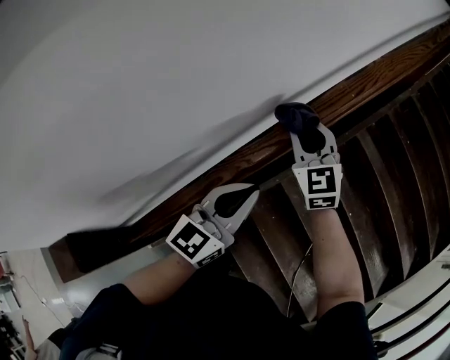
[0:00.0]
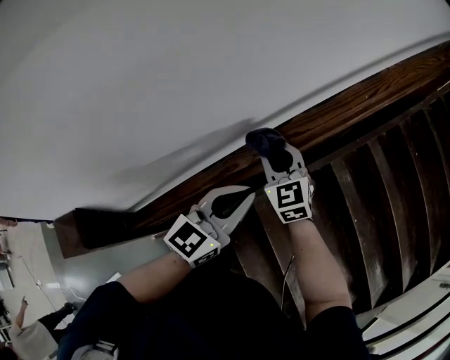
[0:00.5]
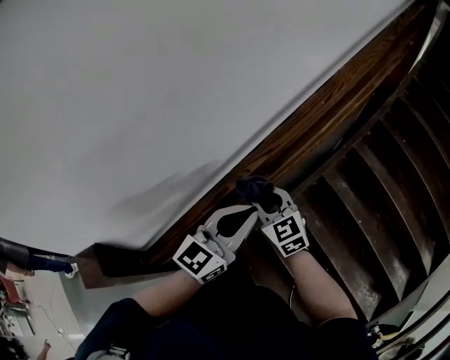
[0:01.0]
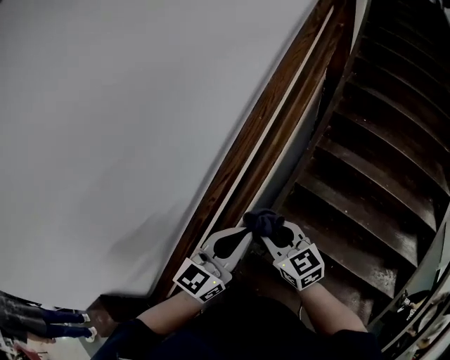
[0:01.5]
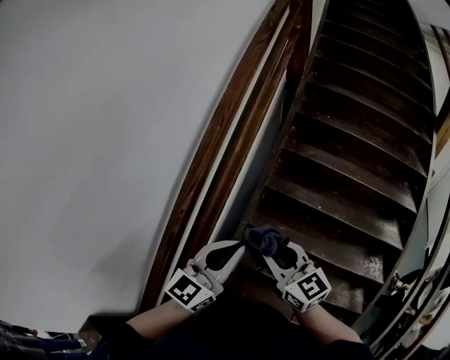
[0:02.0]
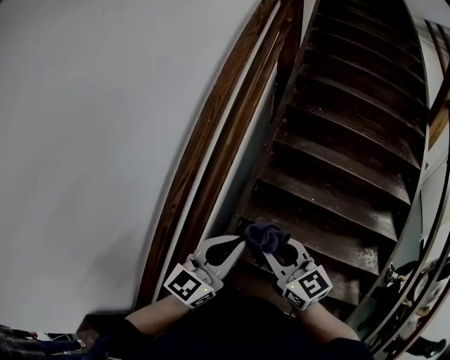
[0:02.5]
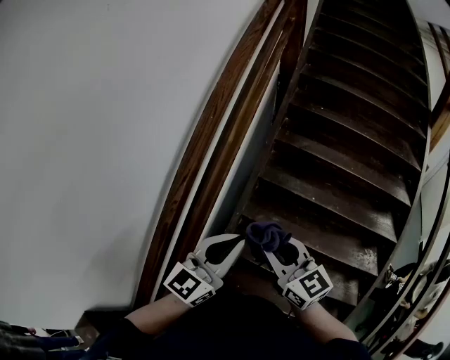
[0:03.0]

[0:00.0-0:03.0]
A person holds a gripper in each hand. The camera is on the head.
0:00.0 to 0:01.5: The left gripper heads backward, to the right and upward, covering approximately 15 cm; the right gripper travels backward by approximately 25 cm, and changes its angle by some 30 degrees.
0:01.5 to 0:03.0: The right gripper goes approximately 15 cm to the right and backward; the left gripper is displaced to the right by approximately 10 cm.

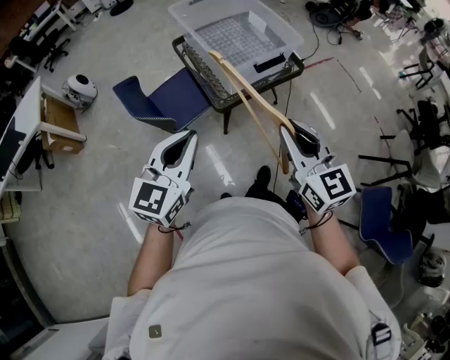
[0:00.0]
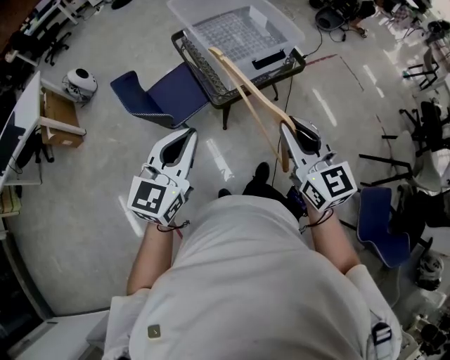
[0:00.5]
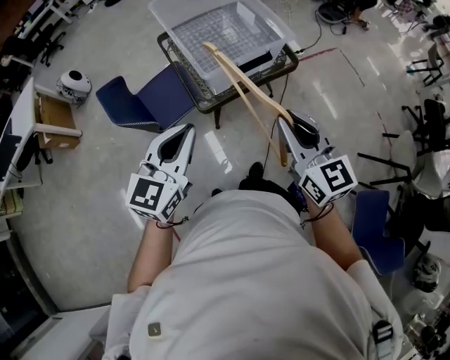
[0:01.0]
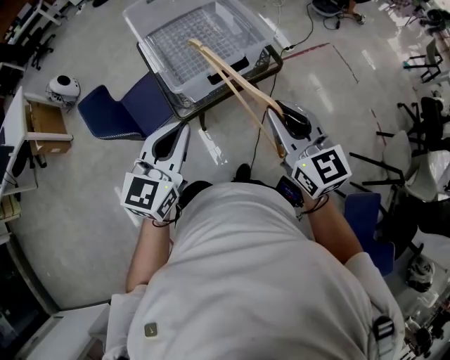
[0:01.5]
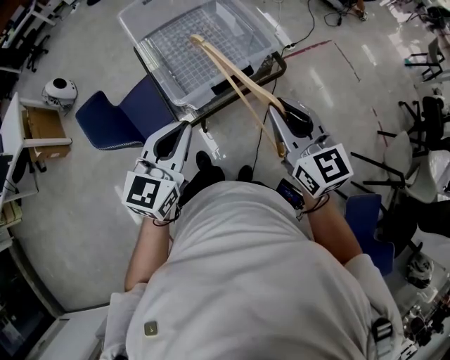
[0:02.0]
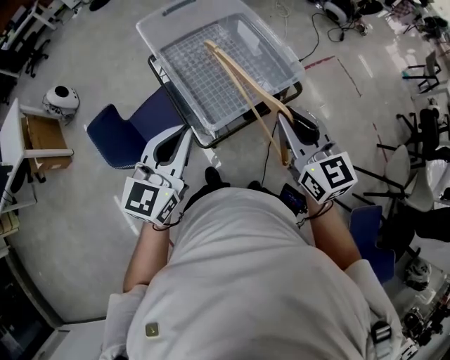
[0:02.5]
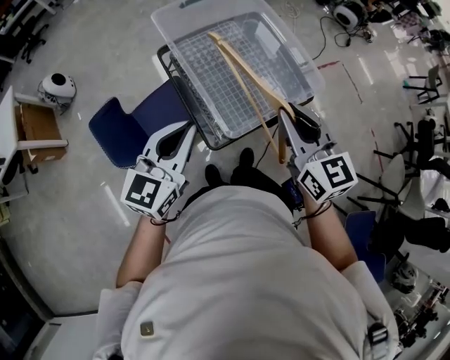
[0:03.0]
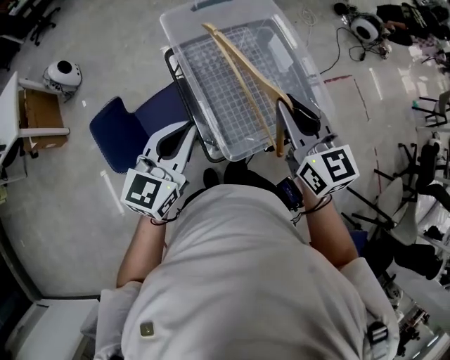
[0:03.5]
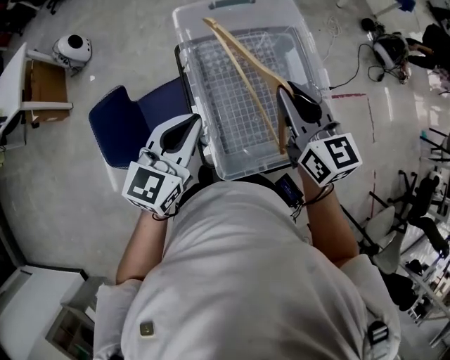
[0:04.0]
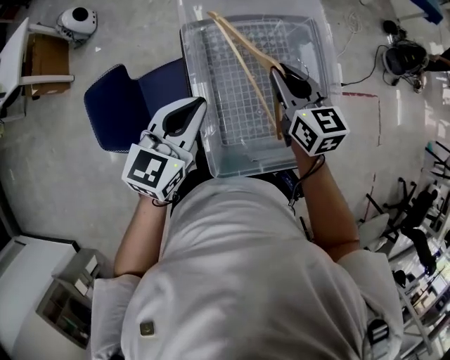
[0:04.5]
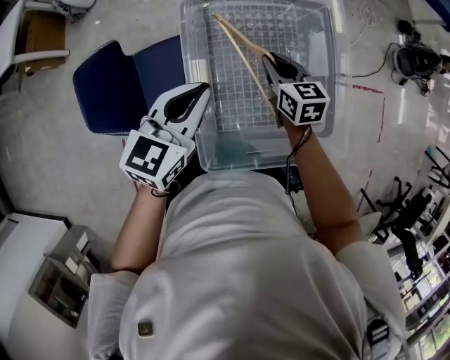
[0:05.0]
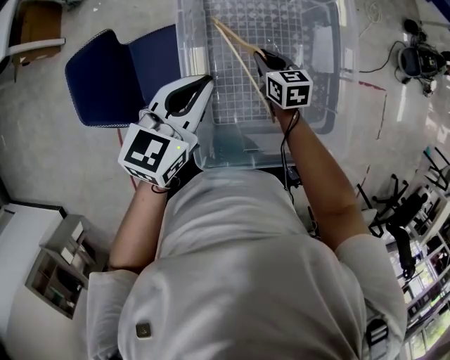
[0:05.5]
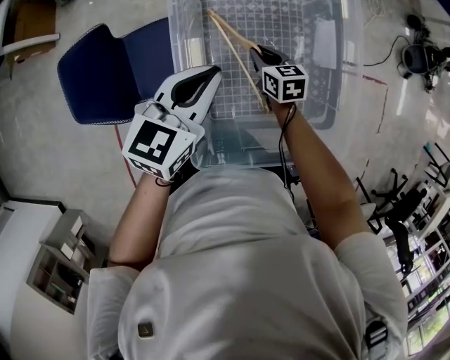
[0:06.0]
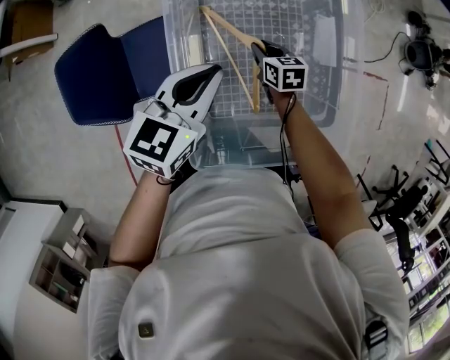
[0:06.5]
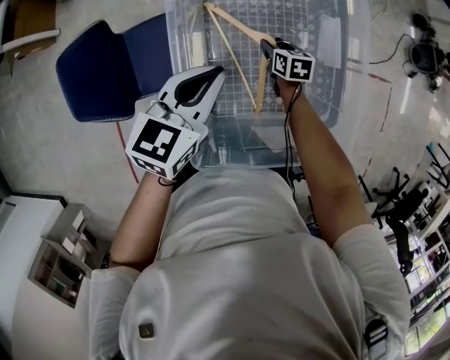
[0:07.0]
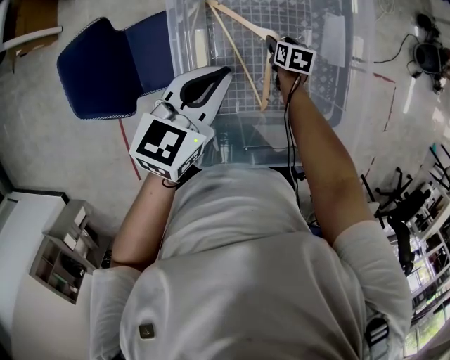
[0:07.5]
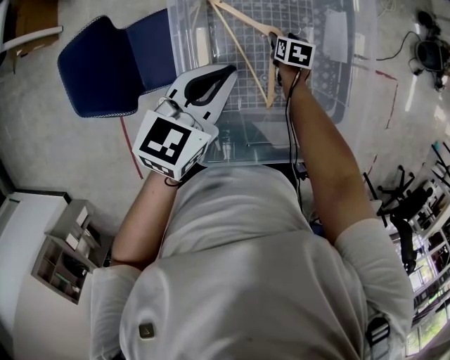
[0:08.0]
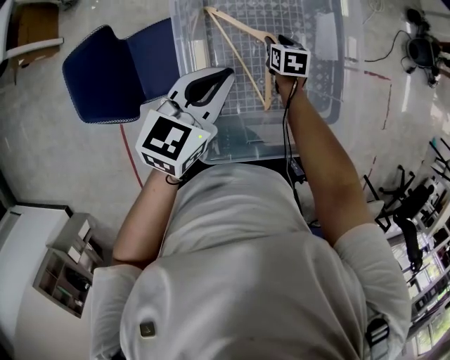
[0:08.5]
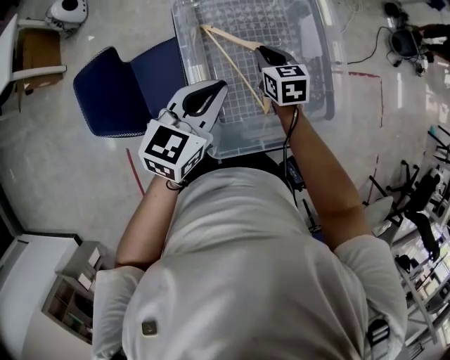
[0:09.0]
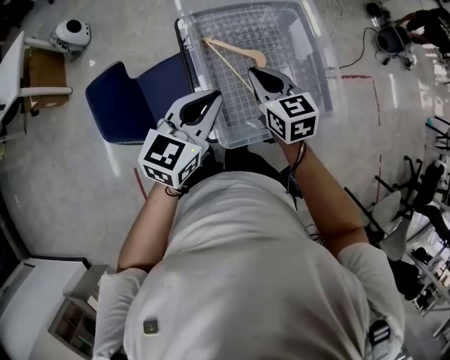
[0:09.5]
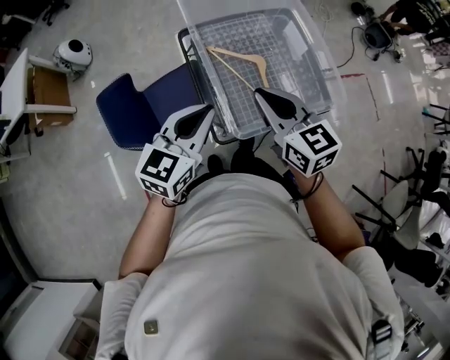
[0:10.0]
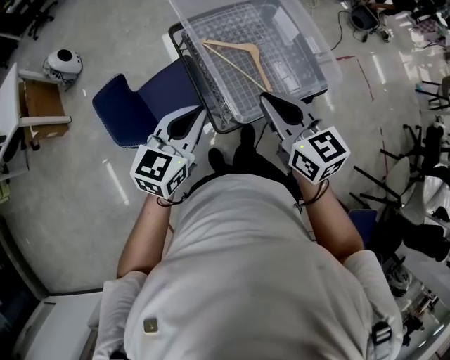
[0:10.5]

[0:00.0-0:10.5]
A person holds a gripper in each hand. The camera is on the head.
0:00.0 to 0:02.0: Both grippers move forward and to the right, roughly 30 cm.
0:02.0 to 0:04.0: The grippers both shift forward and to the left by some 35 cm.
0:04.0 to 0:06.5: The right gripper goes about 40 cm downward, and points its fingers approximately 30 degrees further downward. The left gripper shifts some 20 cm downward, forward and to the right.
0:06.5 to 0:08.5: The right gripper opens, then closes once more.
0:08.5 to 0:10.5: The left gripper shifts roughly 25 cm backward, to the left and upward. Meanwhile the right gripper heads upward and backward, covering roughly 50 cm, angles its fingers upward, by some 40 degrees, and closes its fingers.

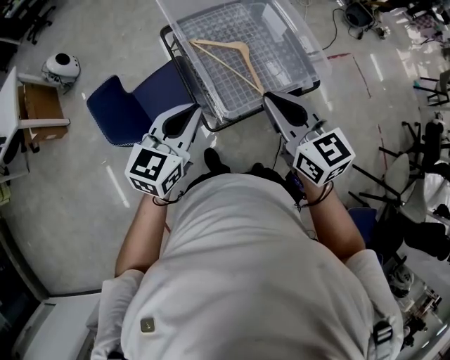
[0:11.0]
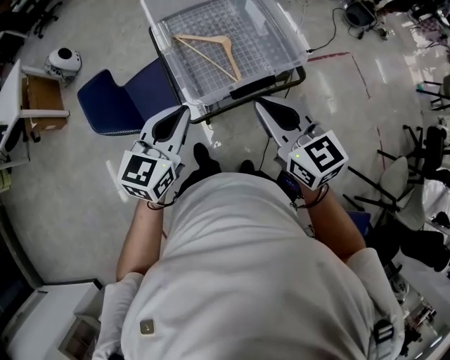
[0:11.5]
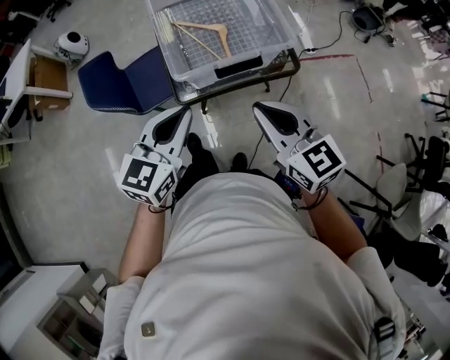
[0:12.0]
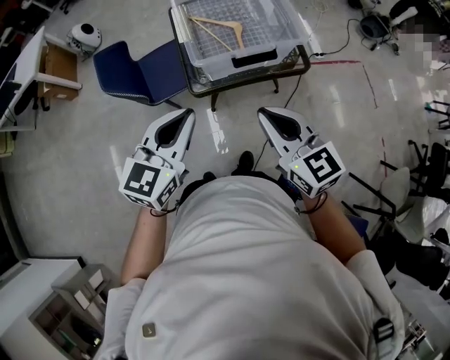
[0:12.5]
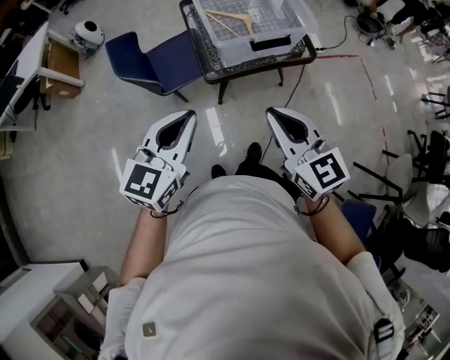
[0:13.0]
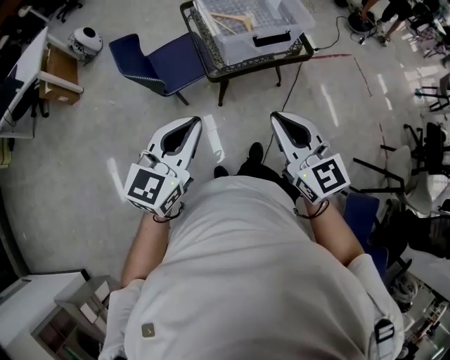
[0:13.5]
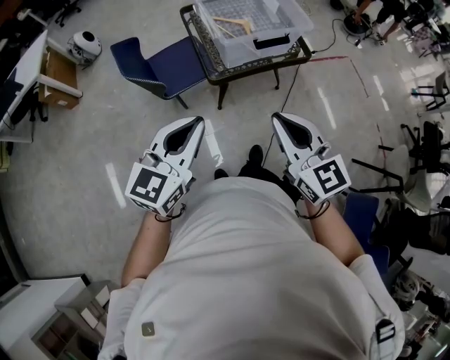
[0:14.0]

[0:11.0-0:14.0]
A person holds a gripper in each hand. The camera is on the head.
0:11.0 to 0:12.5: The two grippers go roughly 25 cm backward and to the right.
0:12.5 to 0:14.0: The two grippers go some 20 cm backward and to the left.

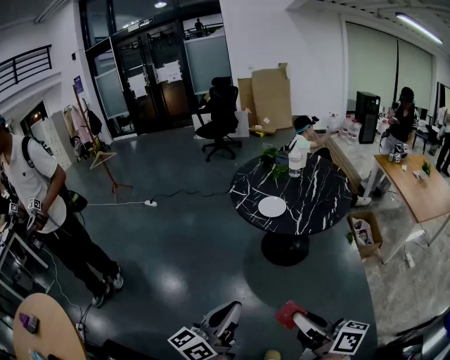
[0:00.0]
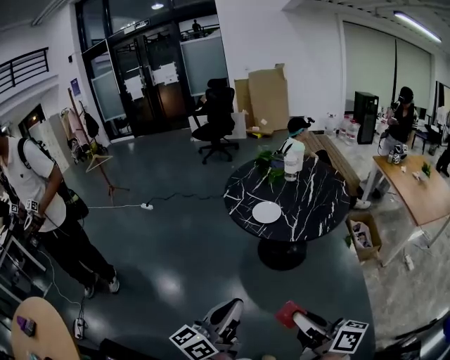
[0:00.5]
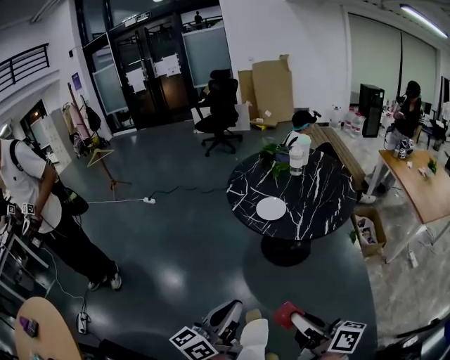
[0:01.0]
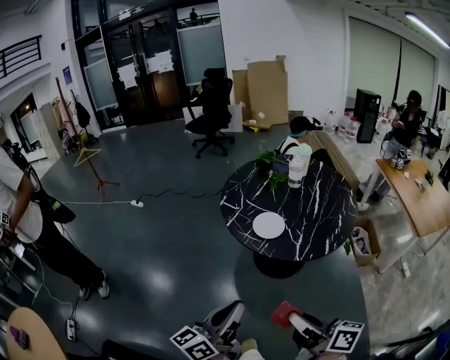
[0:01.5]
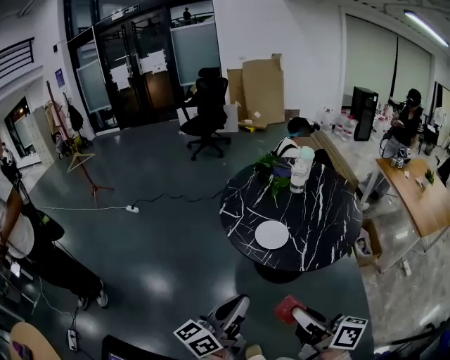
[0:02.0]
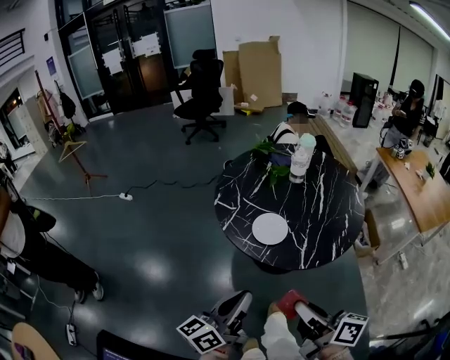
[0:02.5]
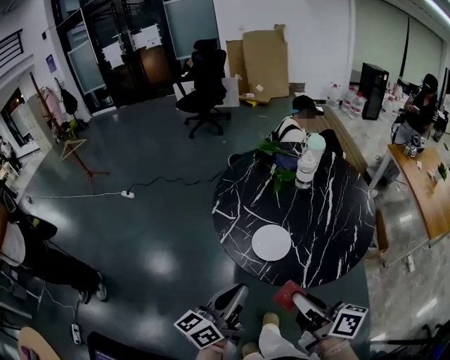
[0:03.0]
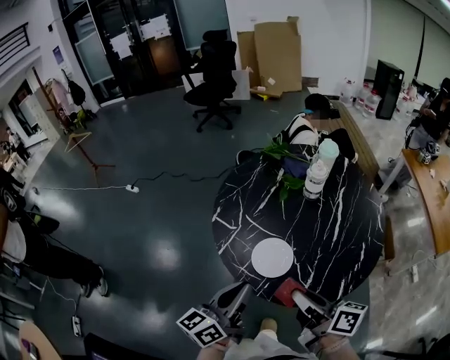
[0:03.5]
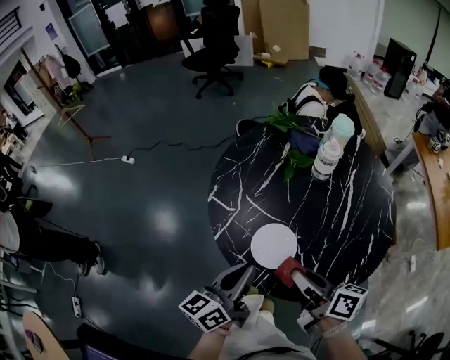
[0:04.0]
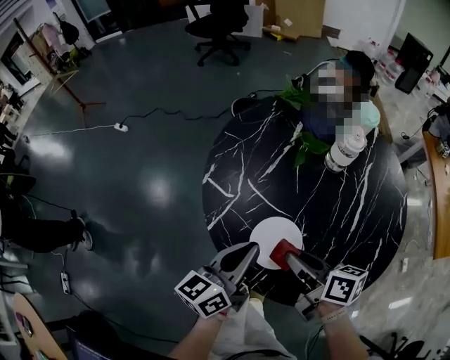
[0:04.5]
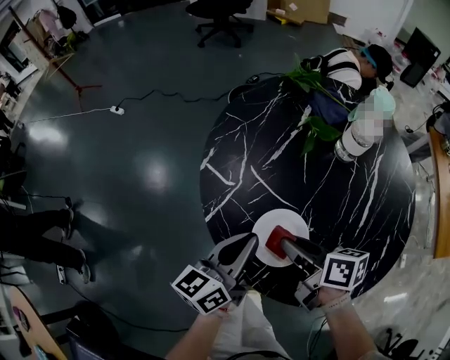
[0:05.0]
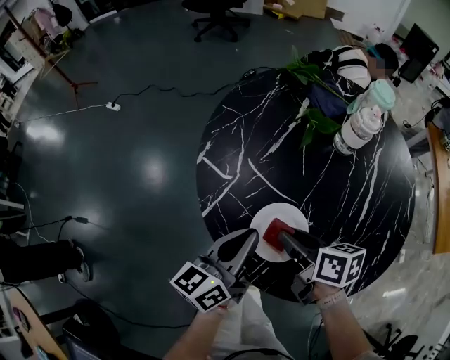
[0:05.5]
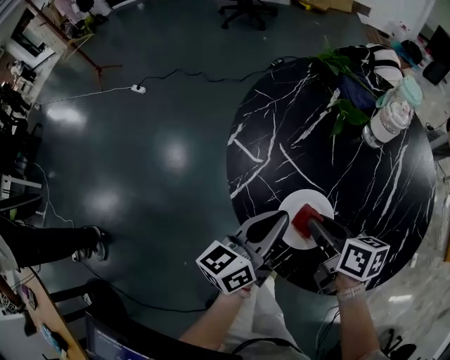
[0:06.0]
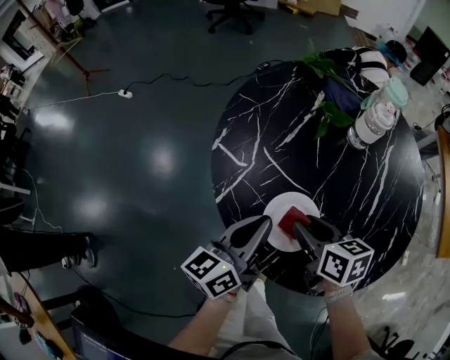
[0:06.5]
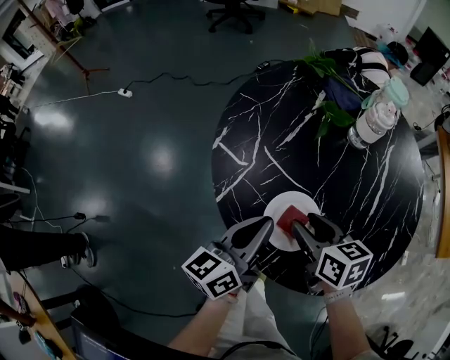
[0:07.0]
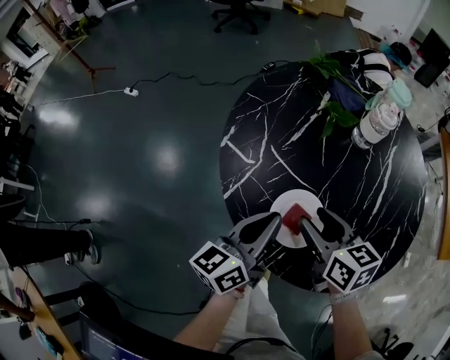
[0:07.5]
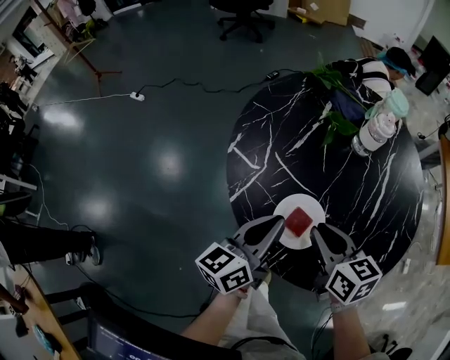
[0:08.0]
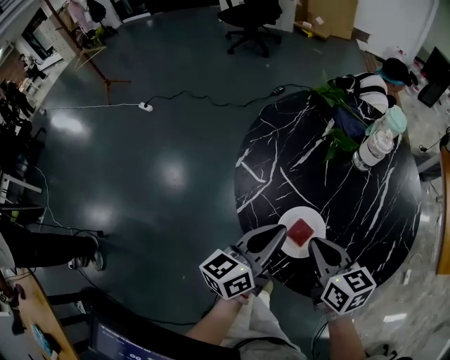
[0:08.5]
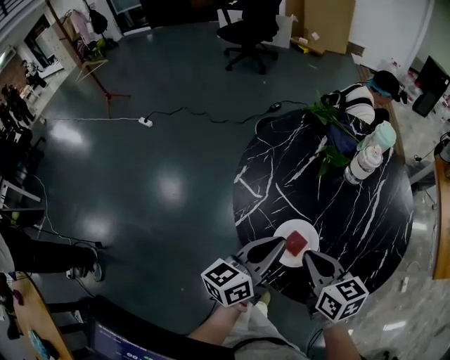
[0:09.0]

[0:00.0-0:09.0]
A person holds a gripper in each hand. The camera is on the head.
0:00.0 to 0:02.0: The grippers both shift forward by some 25 cm.
0:02.0 to 0:04.5: Both grippers move forward and downward, roughly 40 cm. The right gripper rotates approximately 30 degrees.
0:04.5 to 0:07.0: The right gripper travels downward by about 5 cm, swivels approximately 30 degrees, and opens.
0:07.0 to 0:09.0: Both grippers travel together upward, some 10 cm. The right gripper closes.

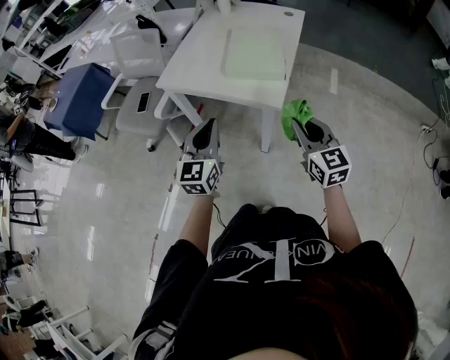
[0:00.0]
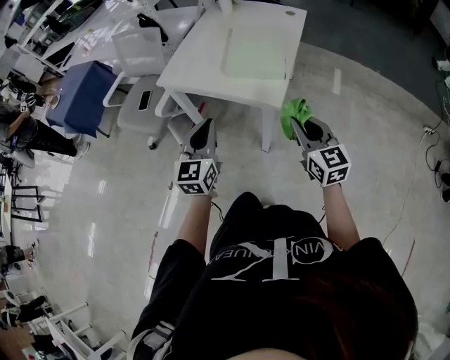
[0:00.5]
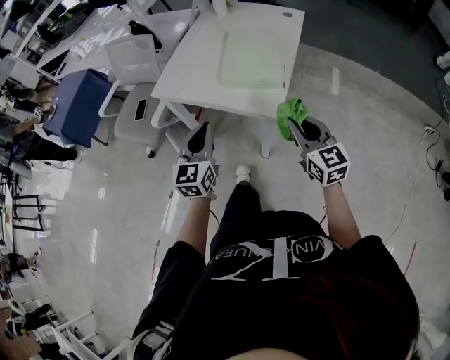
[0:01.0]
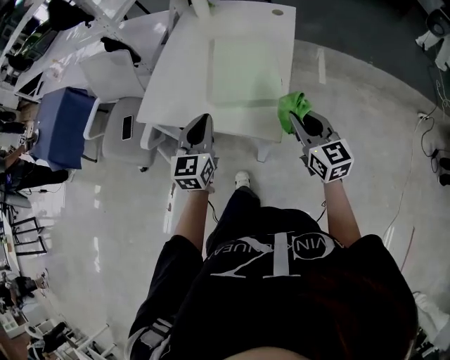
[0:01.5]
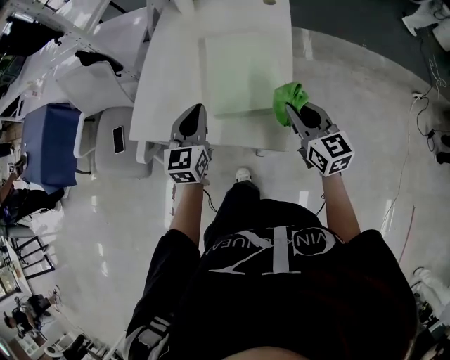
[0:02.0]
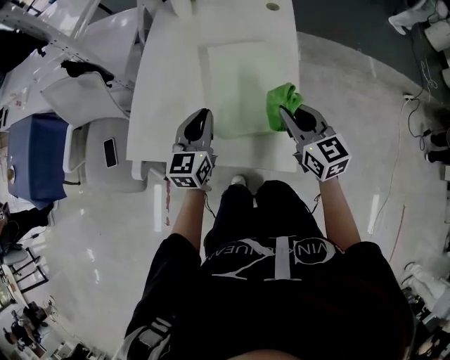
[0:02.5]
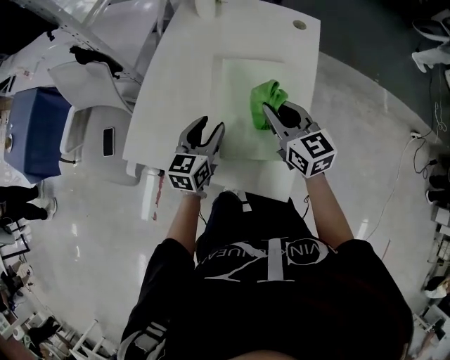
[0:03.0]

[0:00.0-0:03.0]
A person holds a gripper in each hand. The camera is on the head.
0:00.0 to 0:01.5: The two grippers go roughly 20 cm forward.
0:01.5 to 0:03.0: The left gripper goes roughly 20 cm forward and downward, and opens its fingers. Meanwhile the right gripper goes some 25 cm forward.
